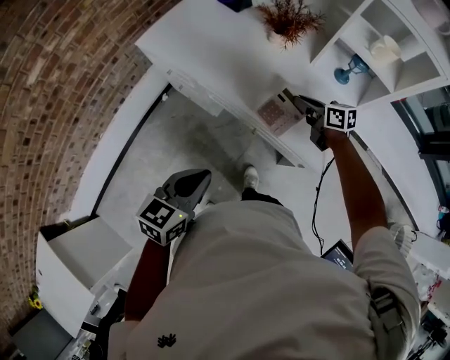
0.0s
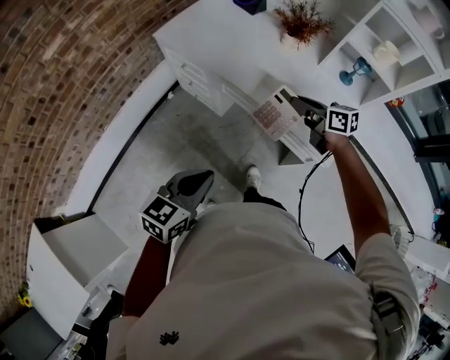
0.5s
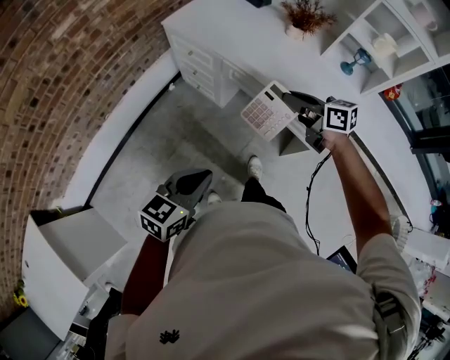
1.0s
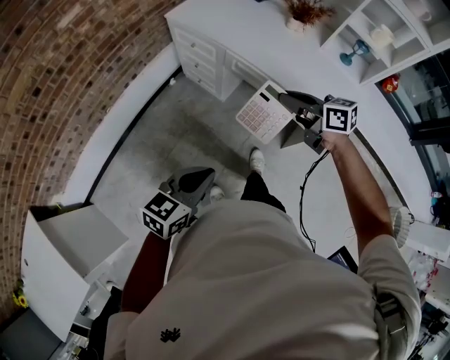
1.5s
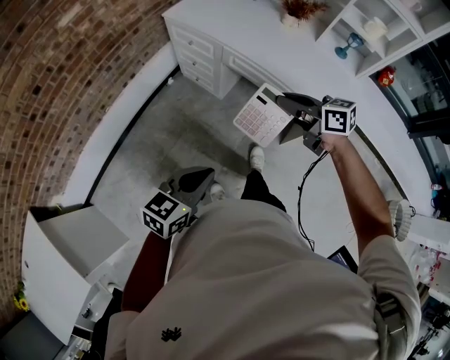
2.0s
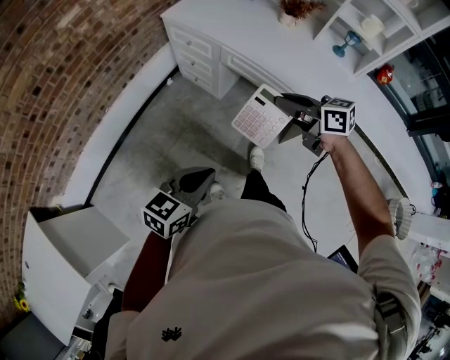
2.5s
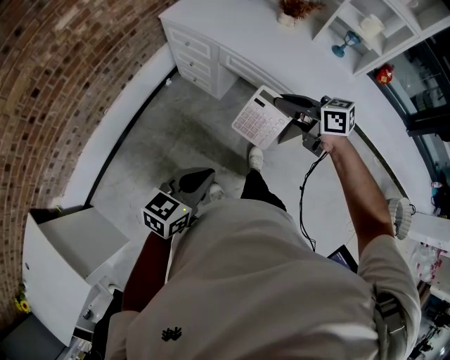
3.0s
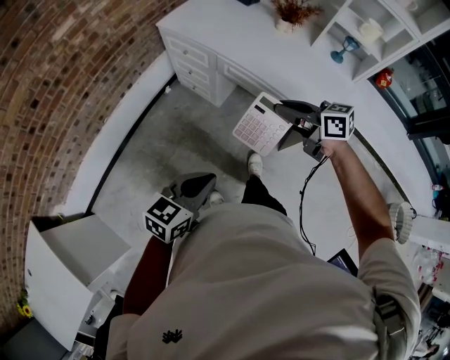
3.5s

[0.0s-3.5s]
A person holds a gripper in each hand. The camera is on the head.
0.0s to 2.0s: The left gripper shifts roughly 25 cm backward and to the left. The right gripper goes some 35 cm backward, to the left and upward.
2.0s to 3.5s: The grippers make only small movements.

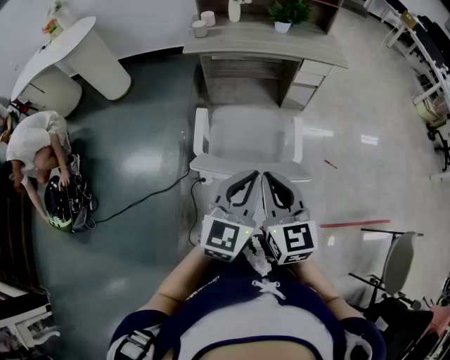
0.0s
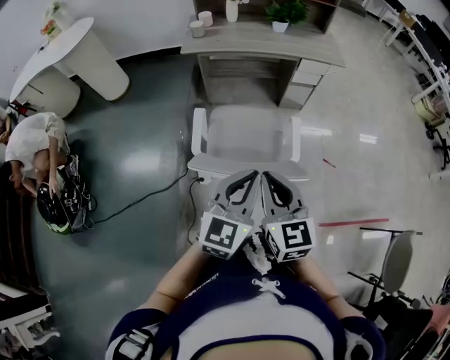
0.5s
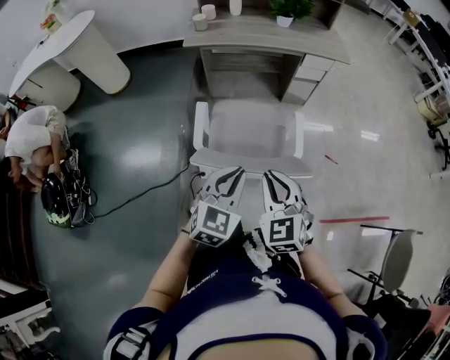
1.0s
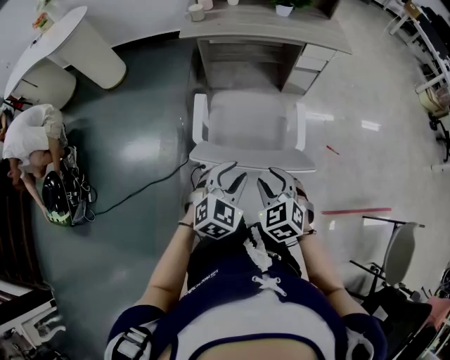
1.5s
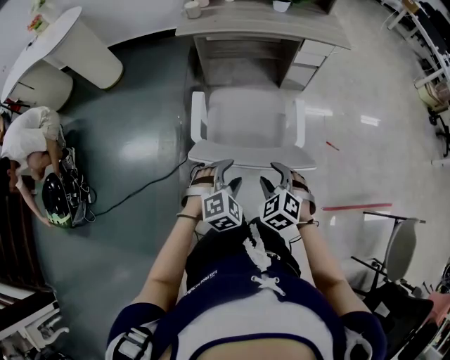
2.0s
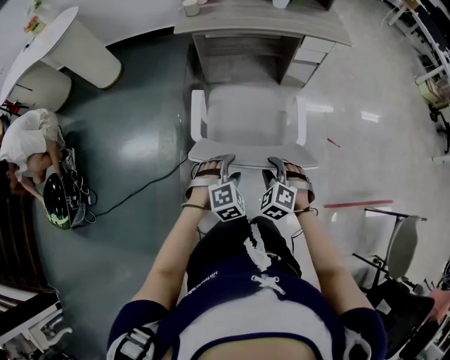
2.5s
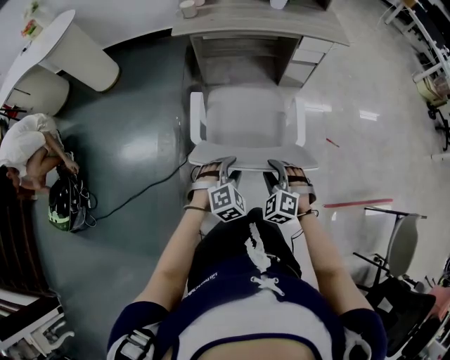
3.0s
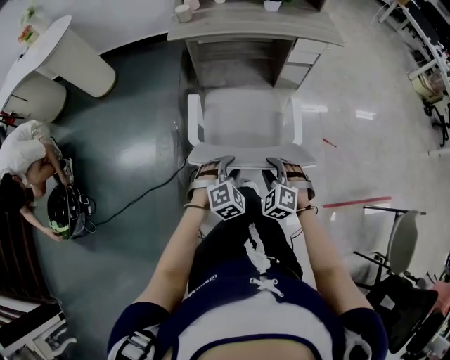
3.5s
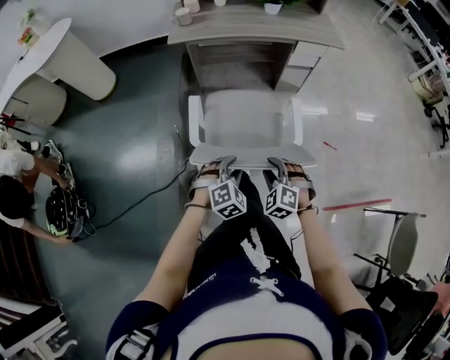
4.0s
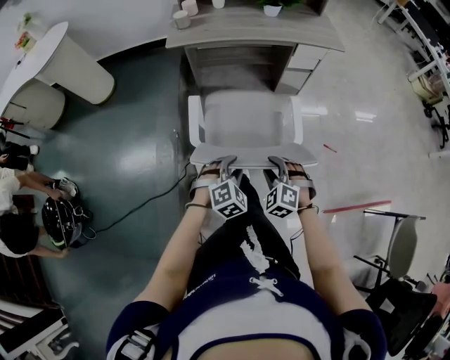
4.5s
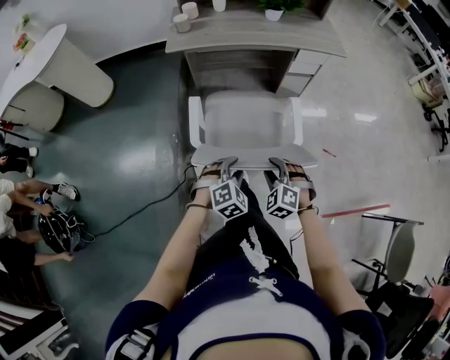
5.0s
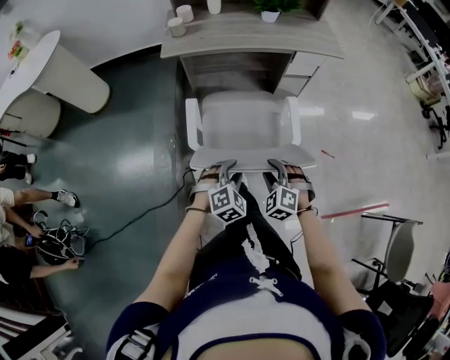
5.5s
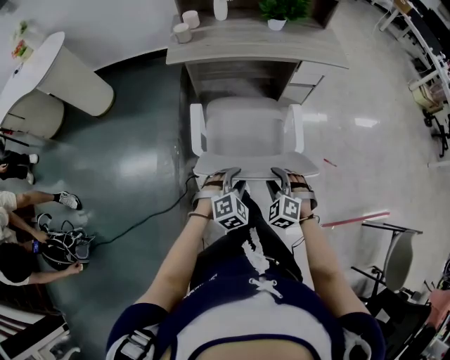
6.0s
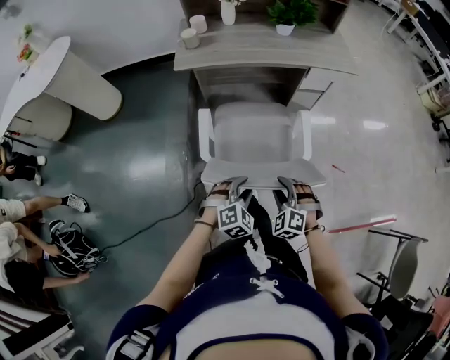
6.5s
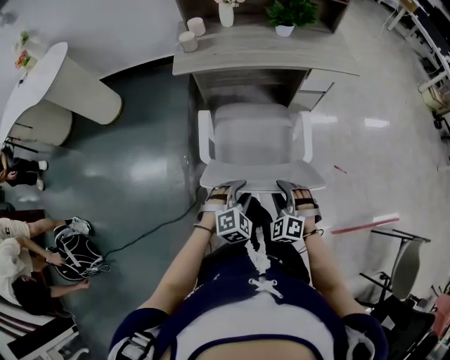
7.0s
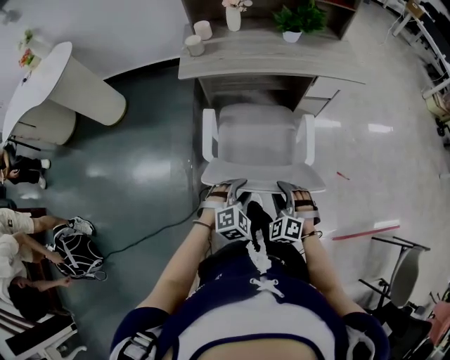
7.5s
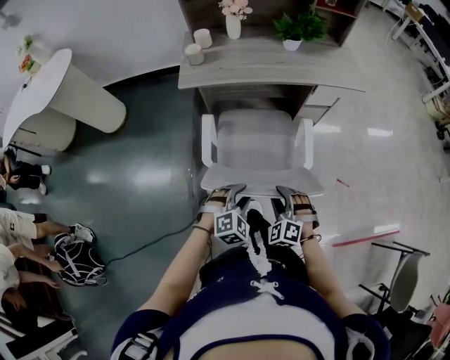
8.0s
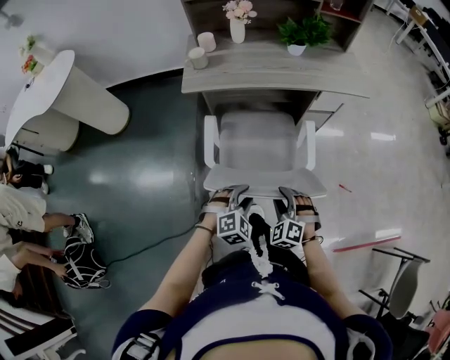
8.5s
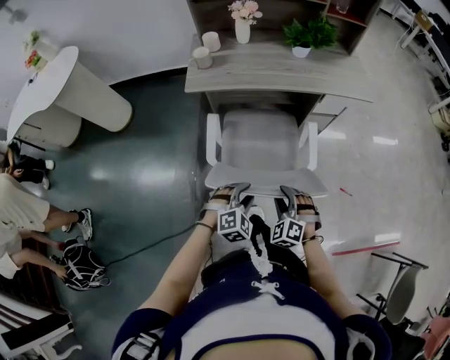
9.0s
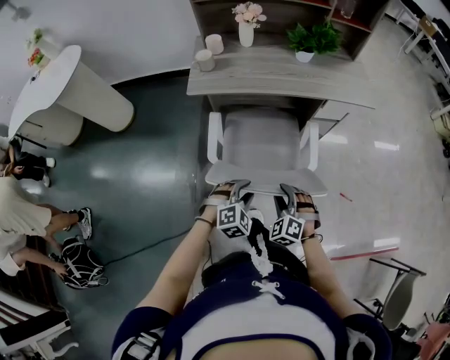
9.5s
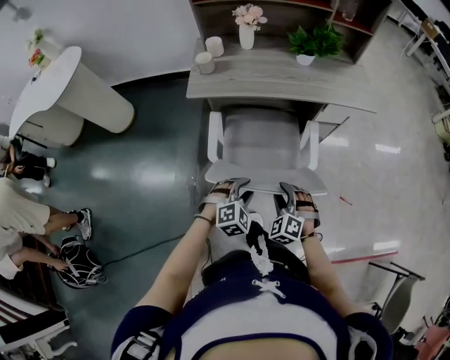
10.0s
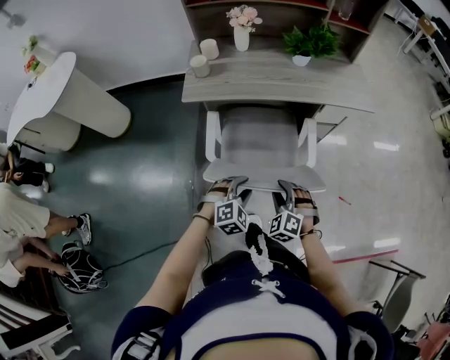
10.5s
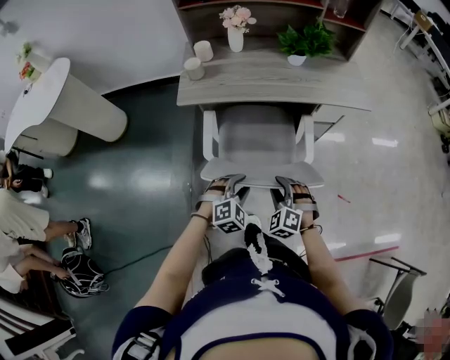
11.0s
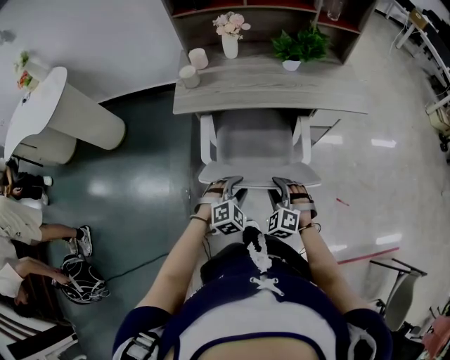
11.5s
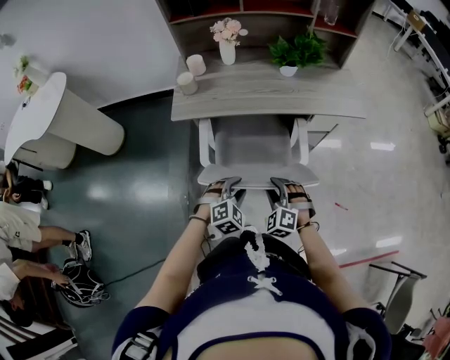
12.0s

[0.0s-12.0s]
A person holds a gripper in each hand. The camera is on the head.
0.0s to 2.0s: Both grippers move downward, some 20 cm. The right gripper tilts its fingers about 40 degrees downward, and opens; the left gripper points its fingers roughly 40 degrees further downward, and opens its fingers.
2.0s to 4.0s: The grippers both shift forward by roughly 5 cm.
4.0s to 6.0s: The grippers both shift forward by some 10 cm.
6.0s to 8.0s: Both grippers move forward, approximately 5 cm.
8.0s to 10.0s: The grippers both shift forward by approximately 10 cm.
10.0s to 12.0s: The two grippers go about 10 cm forward.

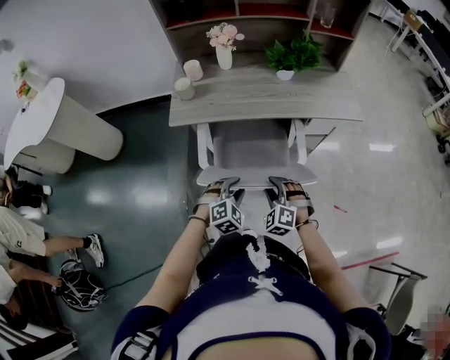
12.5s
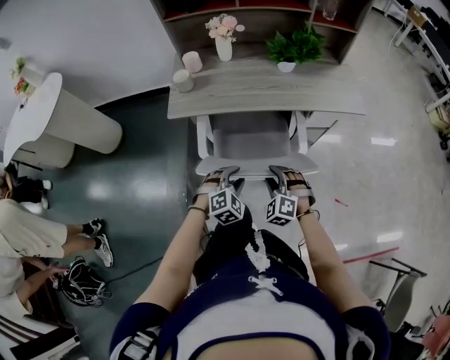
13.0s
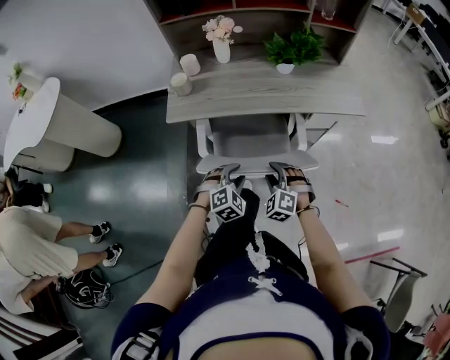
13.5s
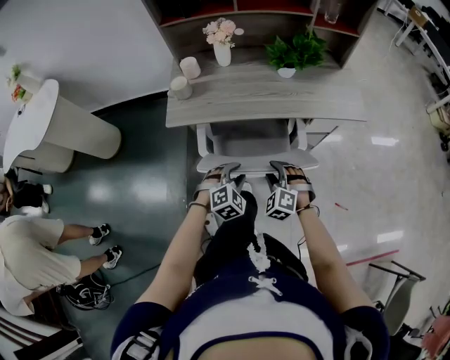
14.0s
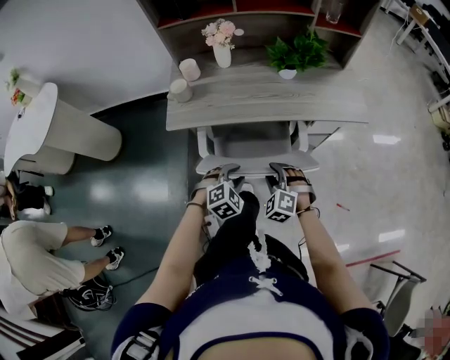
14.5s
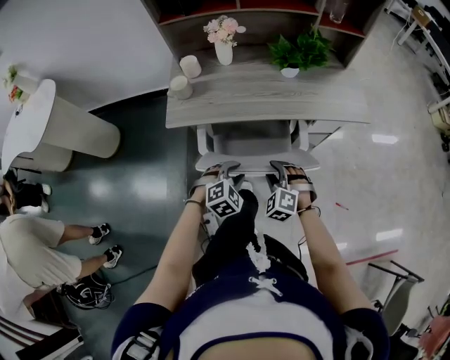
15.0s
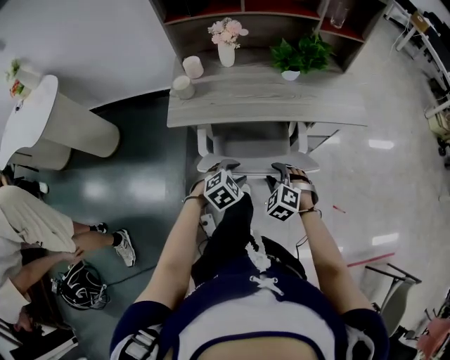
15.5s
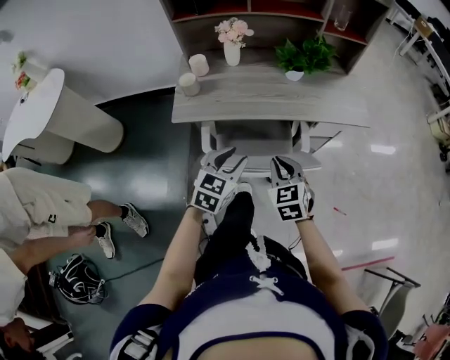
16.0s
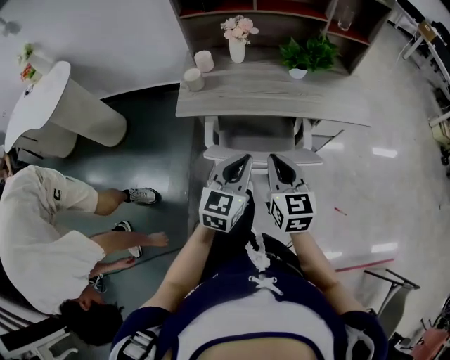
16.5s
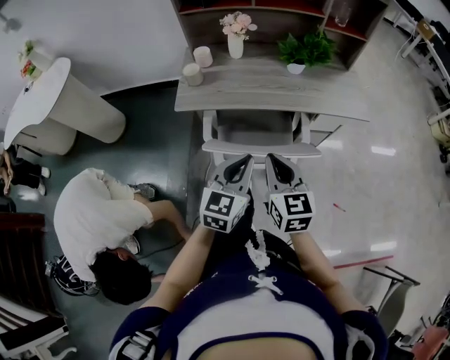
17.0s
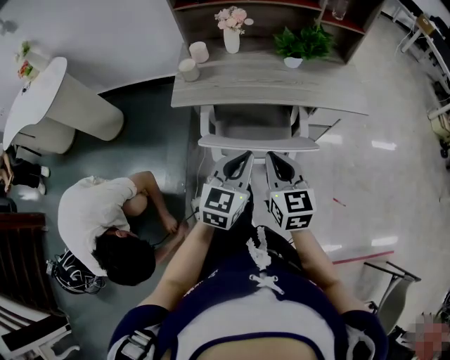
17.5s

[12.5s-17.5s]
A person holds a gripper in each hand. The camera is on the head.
12.5s to 15.0s: Both grippers travel together forward, approximately 10 cm.
15.0s to 17.5s: Both grippers travel together upward, approximately 20 cm. The right gripper rotates around the line of its fingers by about 60 degrees, clockwise from behind, and closes up, while the left gripper tips its fingers upward by some 40 degrees, and closes up.

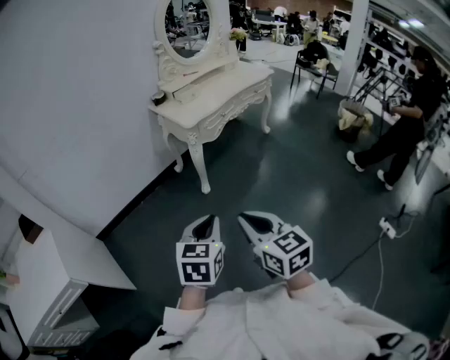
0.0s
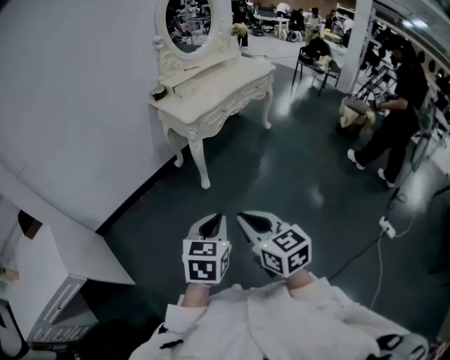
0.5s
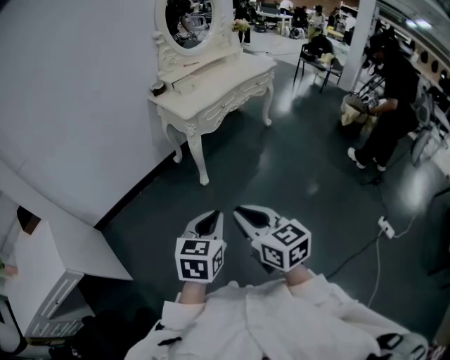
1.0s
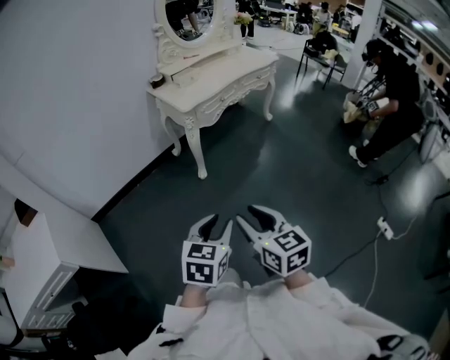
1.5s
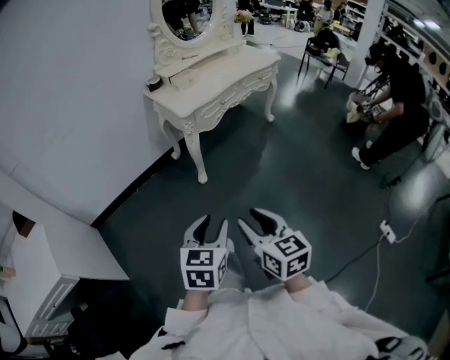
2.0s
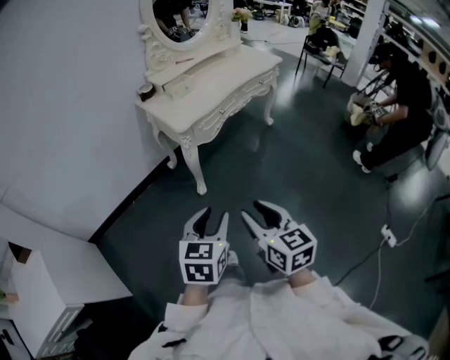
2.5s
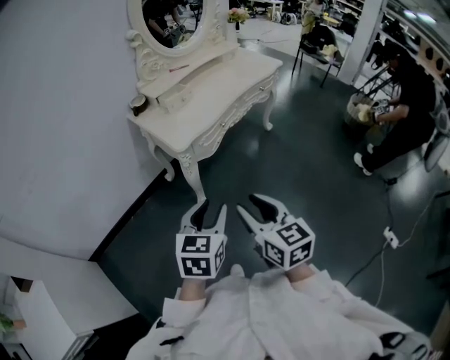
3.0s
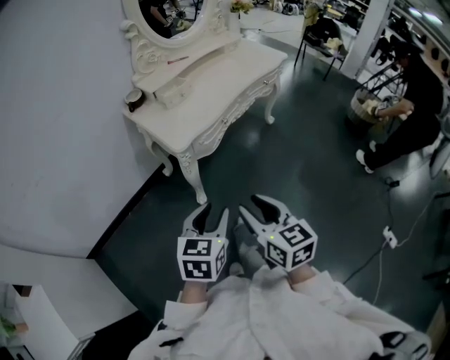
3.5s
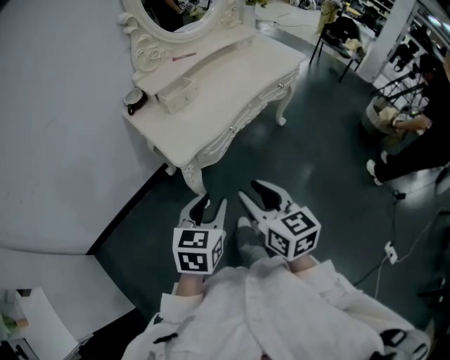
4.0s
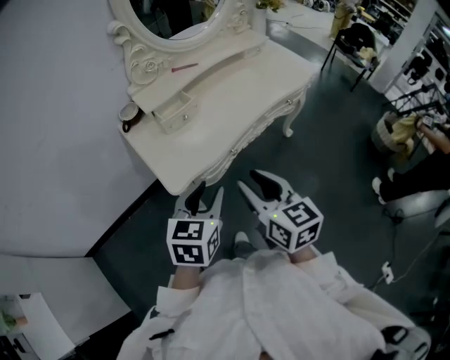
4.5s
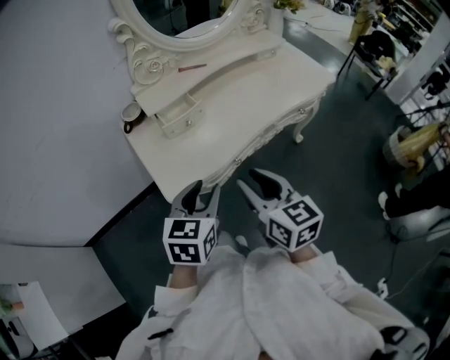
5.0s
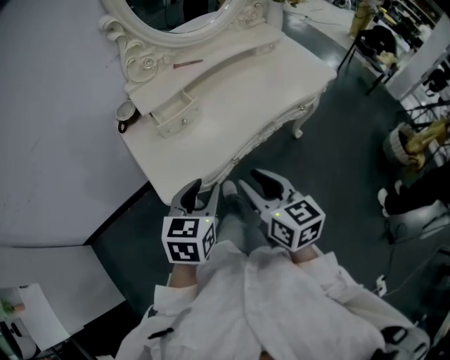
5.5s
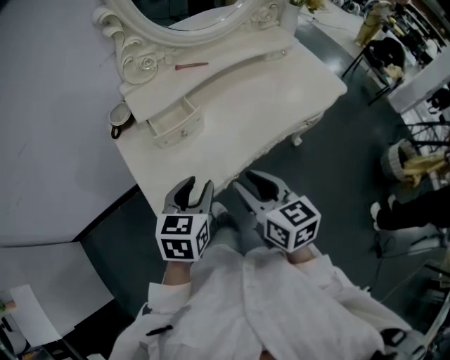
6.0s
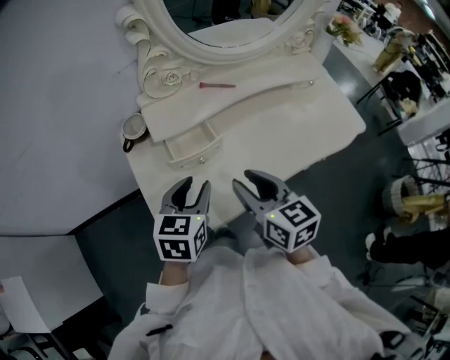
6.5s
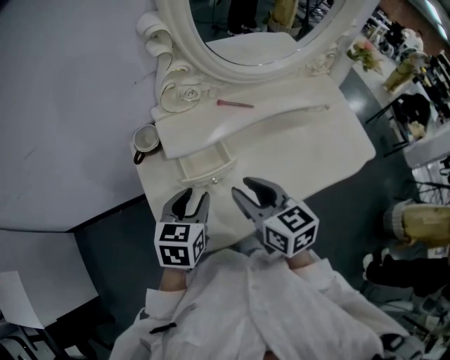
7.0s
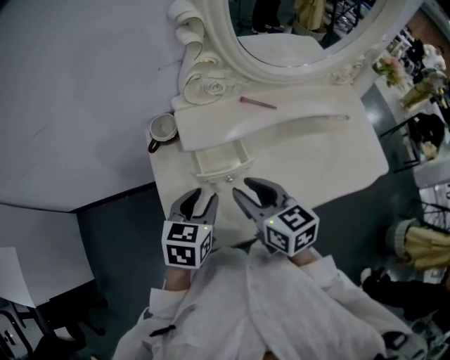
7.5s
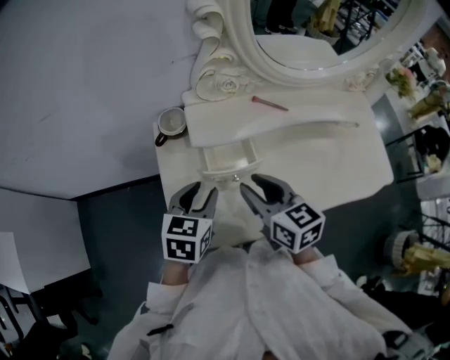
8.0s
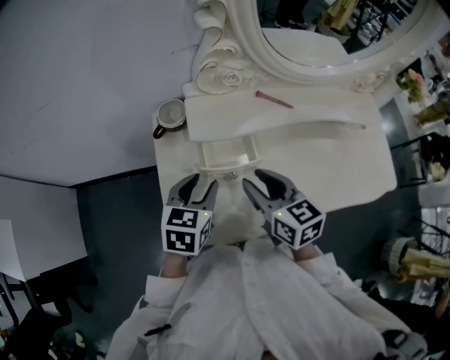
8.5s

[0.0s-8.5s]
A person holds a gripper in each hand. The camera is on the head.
0.0s to 2.0s: Both grippers travel together to the right, some 5 cm. The right gripper opens up, while the left gripper opens up.
2.0s to 4.0s: The pair of grippers is taken forward, roughly 40 cm.
4.0s to 6.5s: The grippers both shift forward by about 40 cm. The right gripper rotates about 20 degrees; the left gripper swivels approximately 20 degrees.
6.5s to 8.5s: Both grippers move forward, approximately 10 cm.
